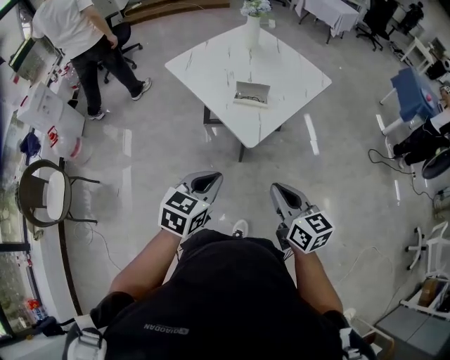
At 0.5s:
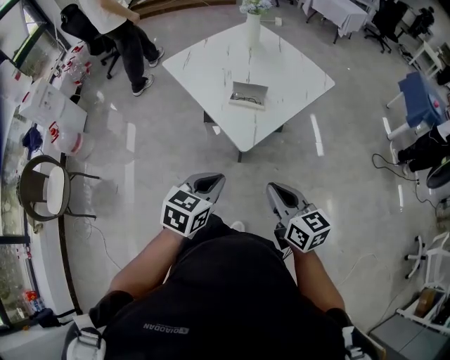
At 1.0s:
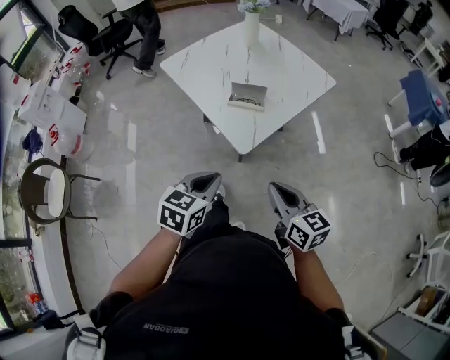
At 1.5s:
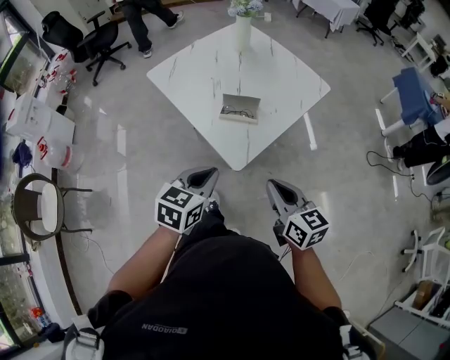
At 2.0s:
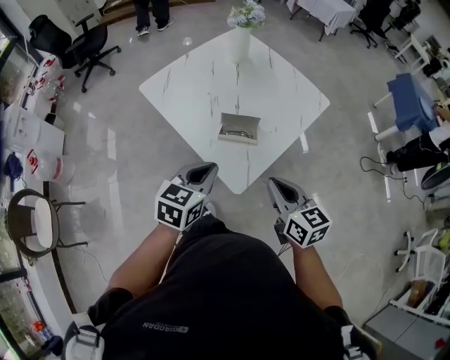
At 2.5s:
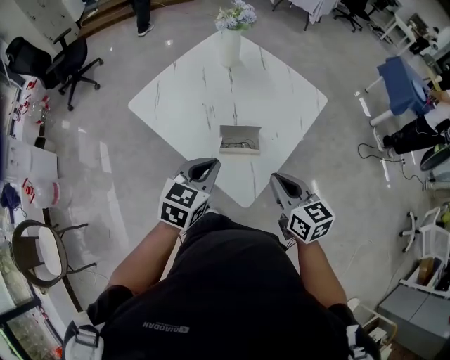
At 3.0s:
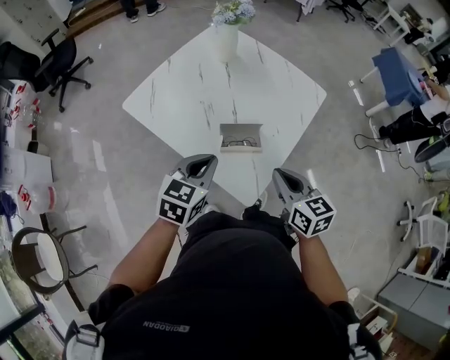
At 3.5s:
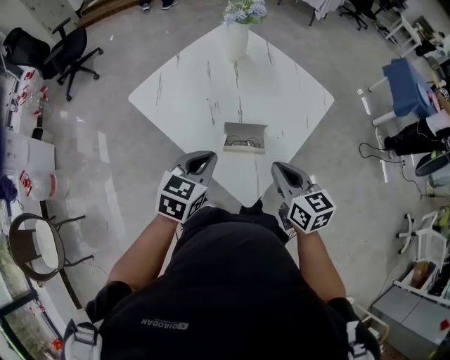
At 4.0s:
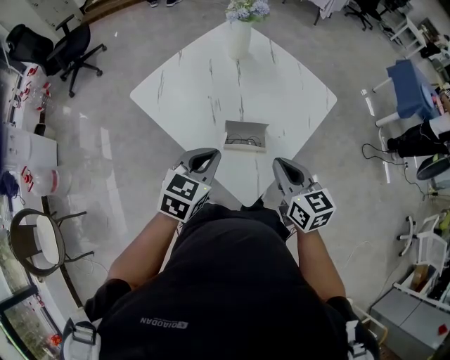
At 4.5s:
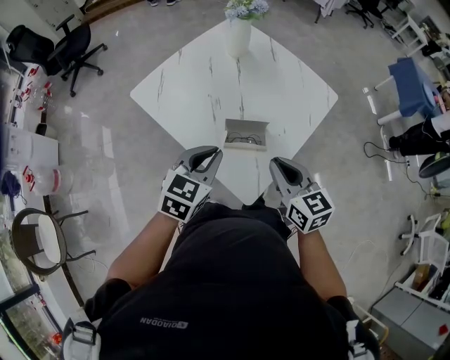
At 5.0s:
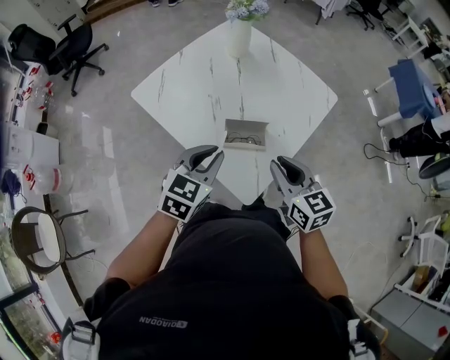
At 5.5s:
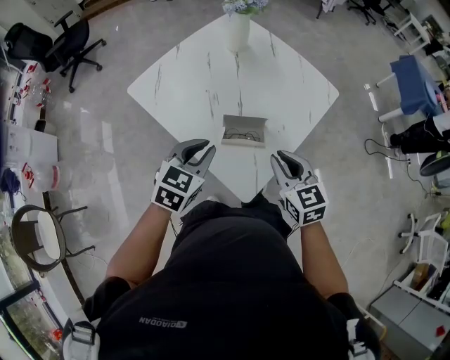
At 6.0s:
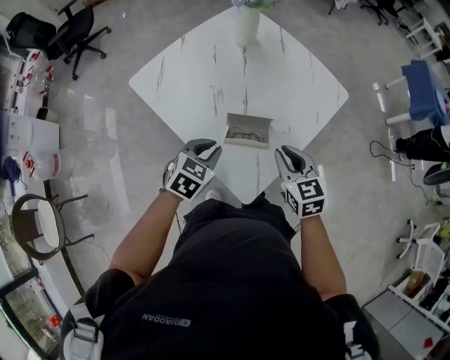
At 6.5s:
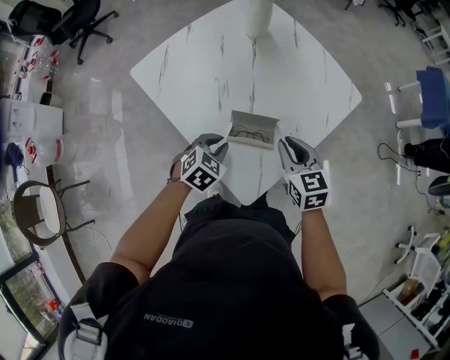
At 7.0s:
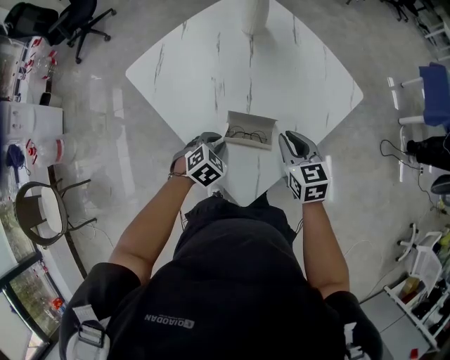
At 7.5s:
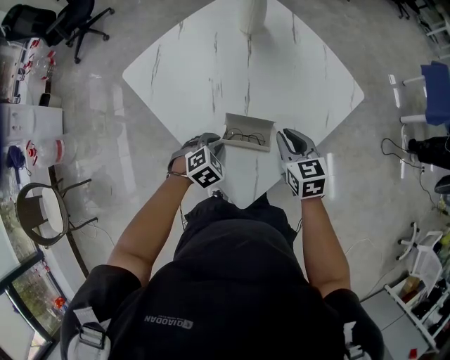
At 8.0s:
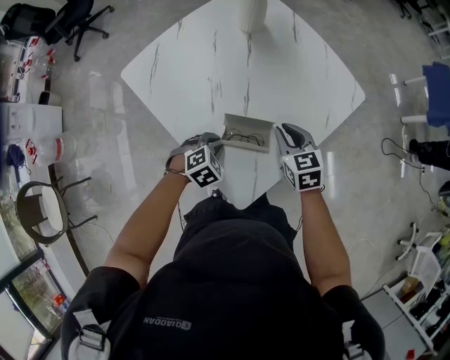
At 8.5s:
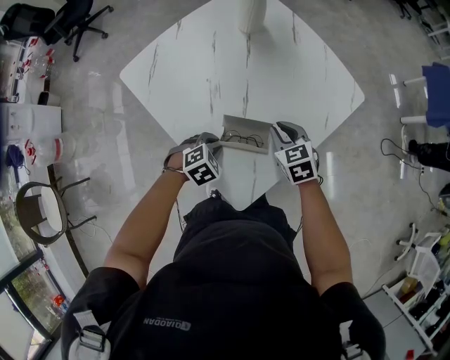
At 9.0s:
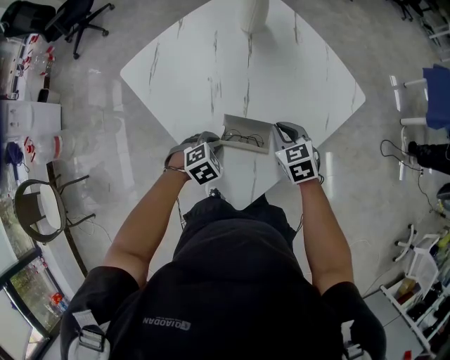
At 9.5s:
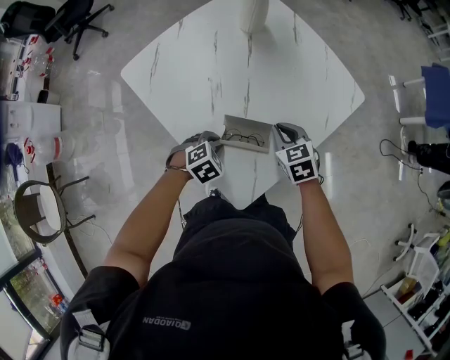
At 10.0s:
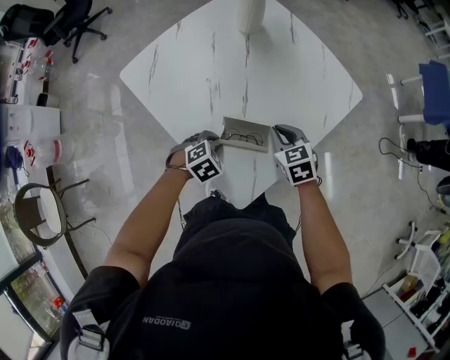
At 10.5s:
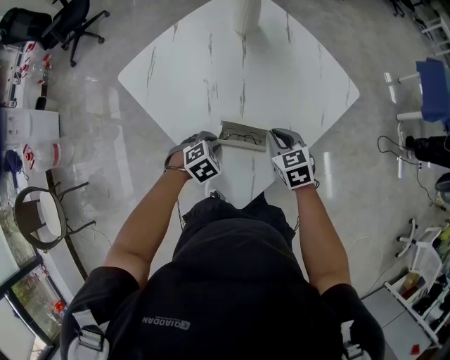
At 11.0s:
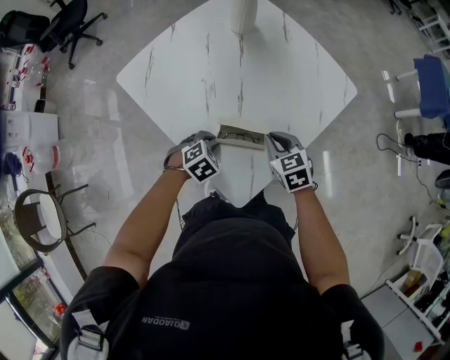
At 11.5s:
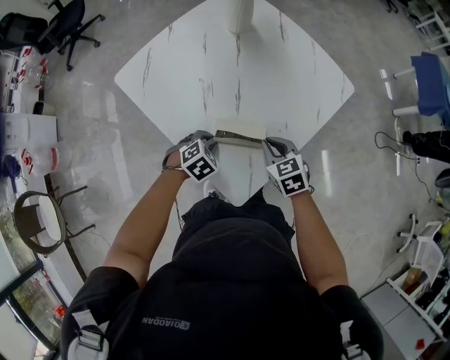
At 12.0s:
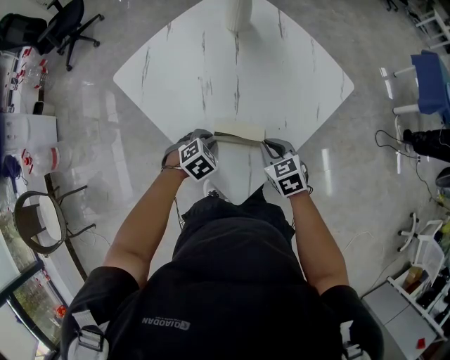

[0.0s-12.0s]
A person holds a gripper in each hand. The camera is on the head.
0.0s to 2.0s: The two grippers go roughly 25 cm forward.
2.0s to 4.0s: The two grippers go approximately 10 cm forward.
4.0s to 6.0s: The left gripper shifts some 10 cm downward; the right gripper is displaced downward by roughly 5 cm.
6.0s to 8.0s: The left gripper goes some 10 cm downward, and changes its angle by about 30 degrees. Meanwhile the right gripper travels forward and downward by about 15 cm.
8.0s to 10.0s: There are only small adjustments of the grippers.
10.0s to 12.0s: The right gripper moves backward, approximately 5 cm.

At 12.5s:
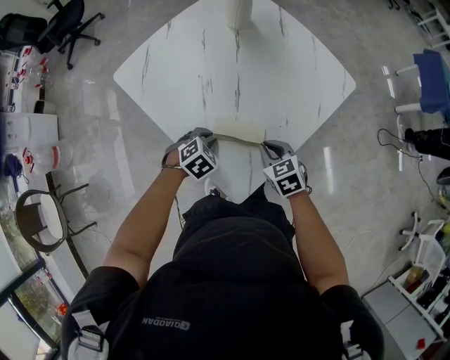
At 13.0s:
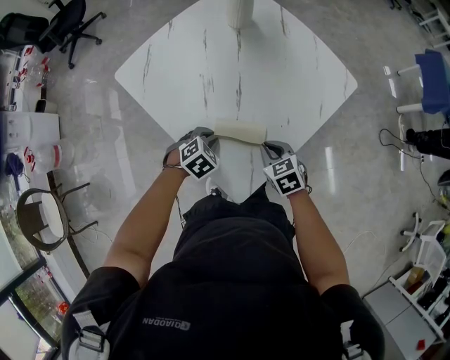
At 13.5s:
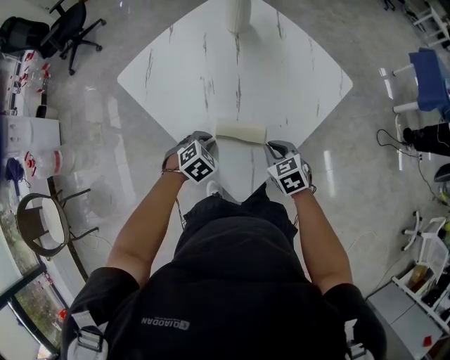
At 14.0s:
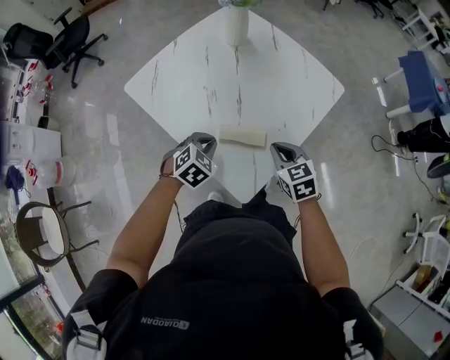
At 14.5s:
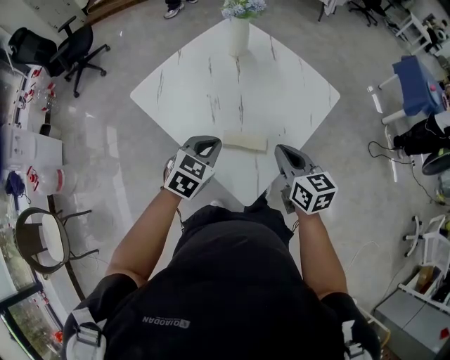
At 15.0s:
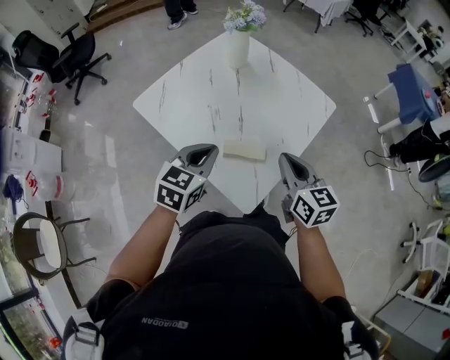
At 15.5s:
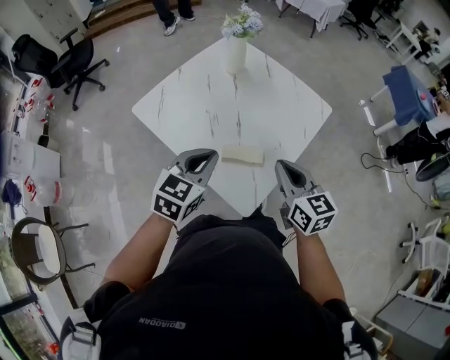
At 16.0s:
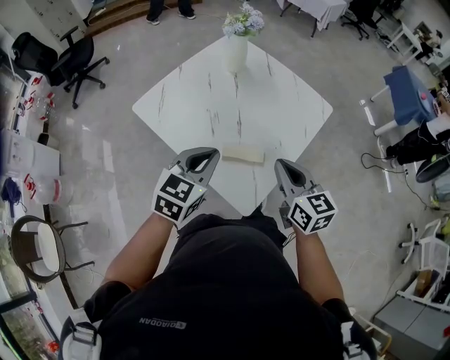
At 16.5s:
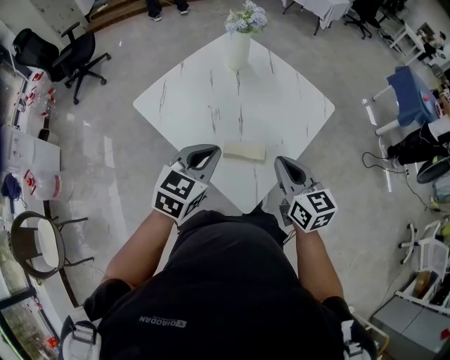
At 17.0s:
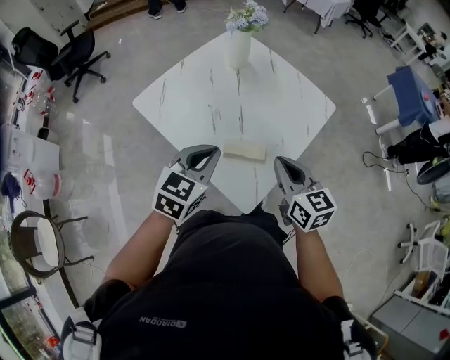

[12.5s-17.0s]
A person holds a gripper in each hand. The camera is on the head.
12.5s to 14.5s: The two grippers go some 20 cm upward. The right gripper rotates some 40 degrees; the left gripper changes its angle by some 30 degrees.
14.5s to 17.0s: The left gripper is displaced upward by roughly 10 cm.

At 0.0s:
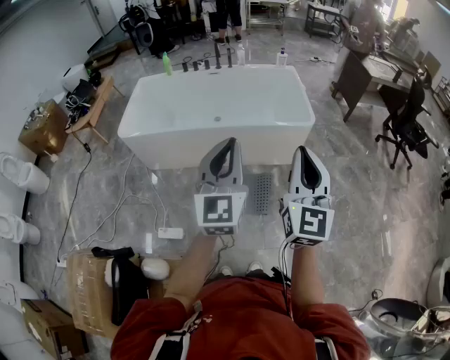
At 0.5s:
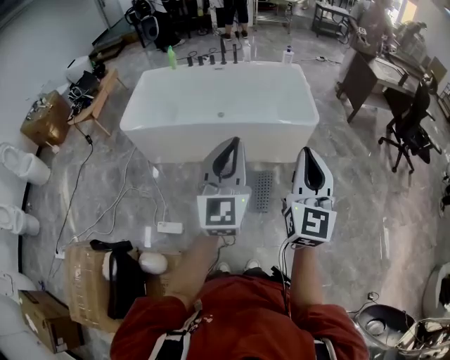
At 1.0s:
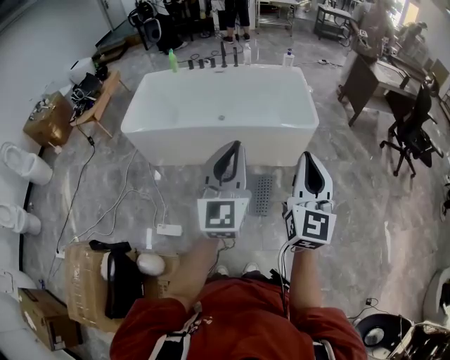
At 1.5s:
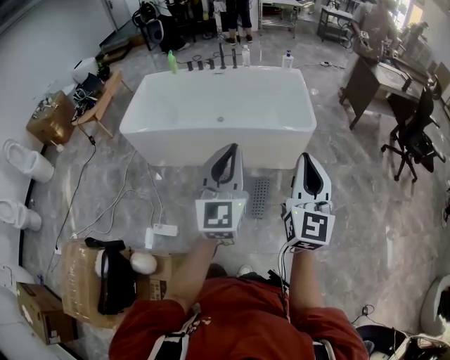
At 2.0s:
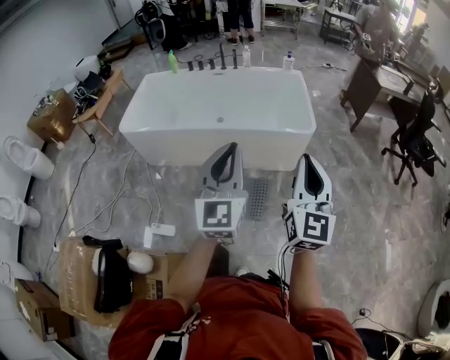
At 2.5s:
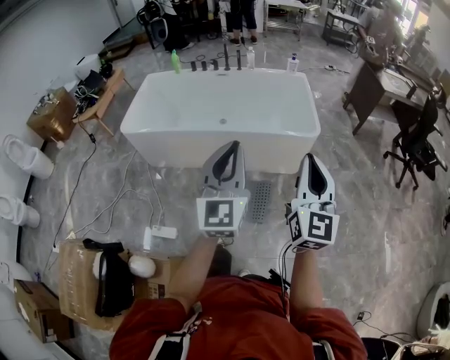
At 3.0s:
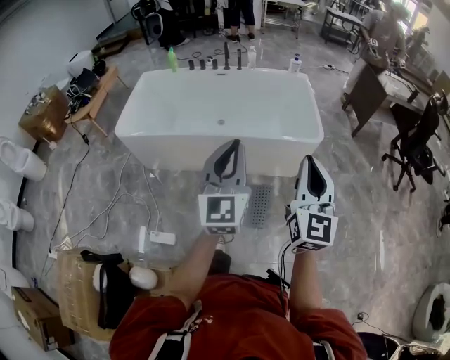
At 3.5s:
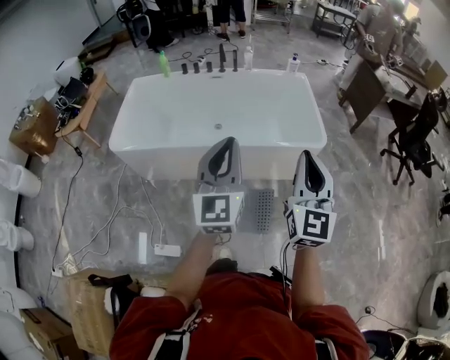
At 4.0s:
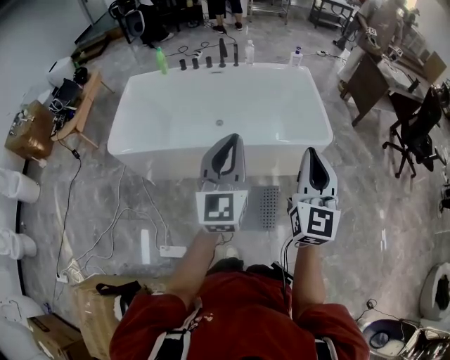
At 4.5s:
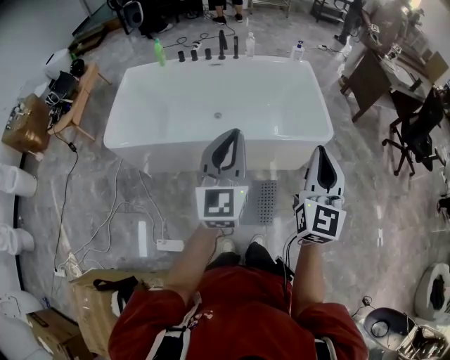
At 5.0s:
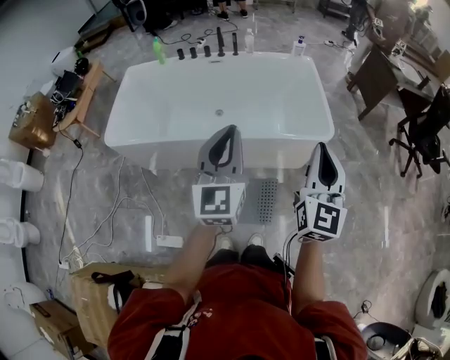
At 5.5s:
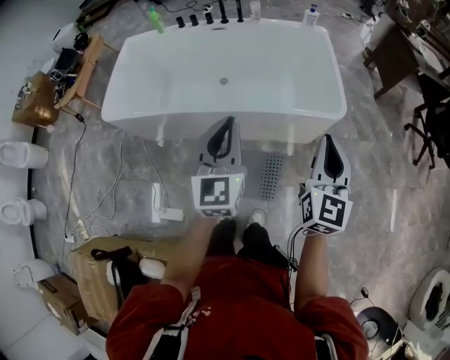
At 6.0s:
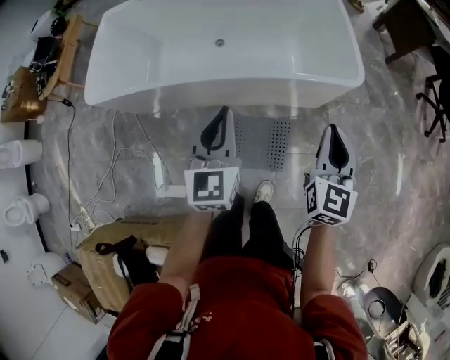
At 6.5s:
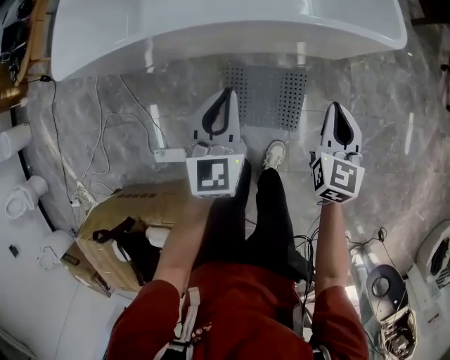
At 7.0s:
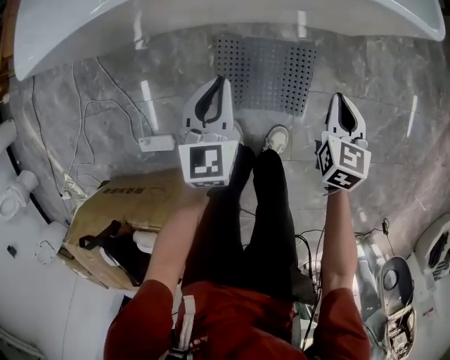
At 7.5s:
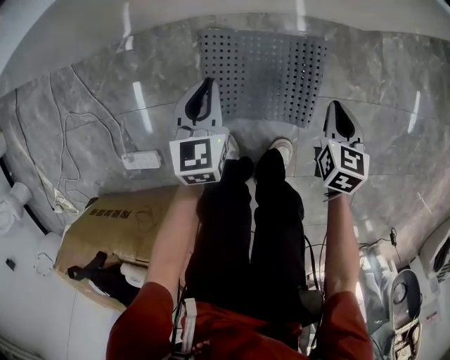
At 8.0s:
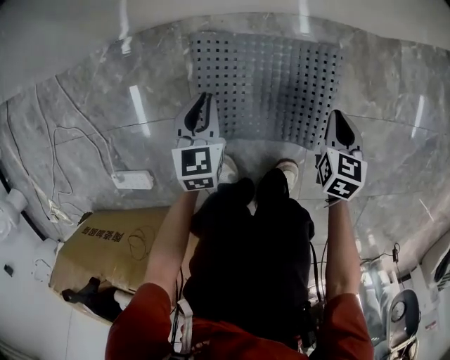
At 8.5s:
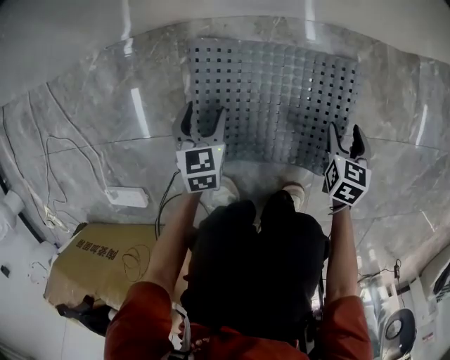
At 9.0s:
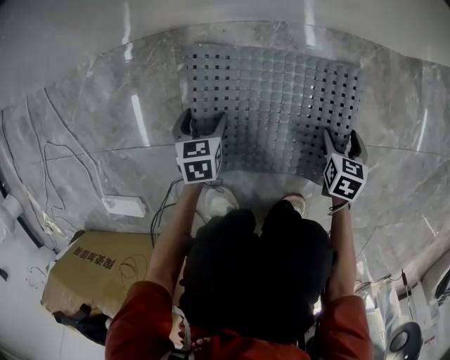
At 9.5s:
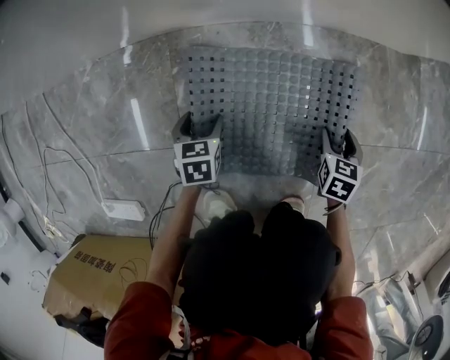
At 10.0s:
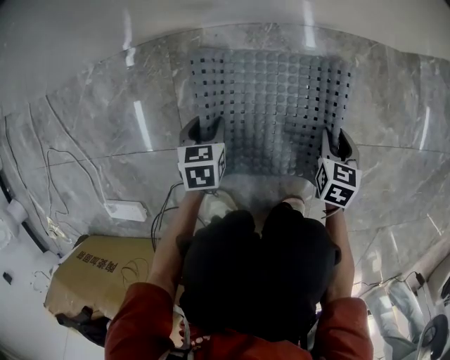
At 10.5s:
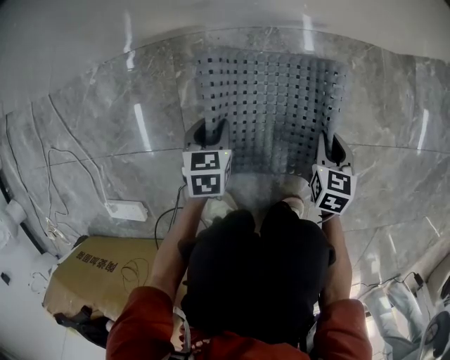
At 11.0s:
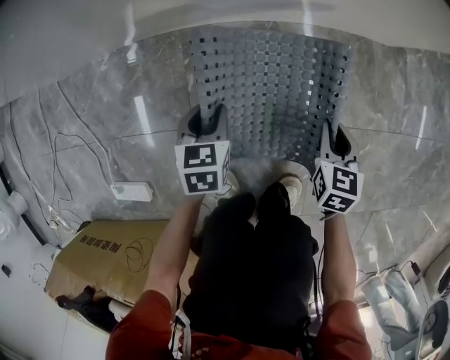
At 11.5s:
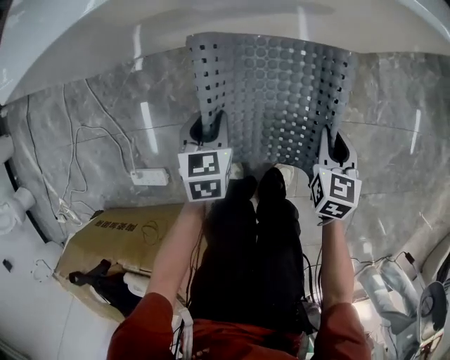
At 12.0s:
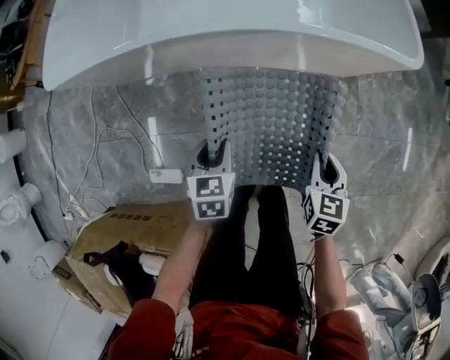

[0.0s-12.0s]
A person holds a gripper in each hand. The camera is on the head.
0.0s to 2.0s: Both grippers move to the right, about 10 cm.
2.0s to 4.0s: The two grippers go about 25 cm forward and to the left.
4.0s to 6.0s: The left gripper moves downward, about 20 cm. The right gripper shifts about 25 cm downward, forward and to the right, and rotates about 20 degrees.
6.0s to 8.0s: The two grippers go about 70 cm downward. The left gripper tilts its fingers approximately 30 degrees downward, while the right gripper tips its fingers downward by some 40 degrees.
8.0s to 10.0s: Both grippers travel together downward, about 15 cm. The right gripper opens. The left gripper rotates about 20 degrees, and opens.
10.0s to 12.0s: The grippers both shift upward by some 50 cm.
